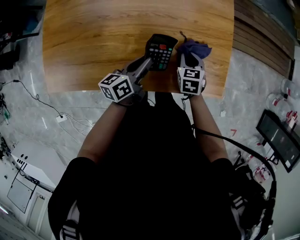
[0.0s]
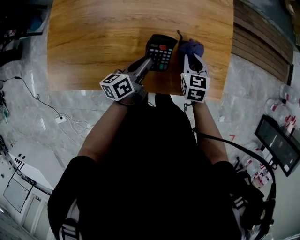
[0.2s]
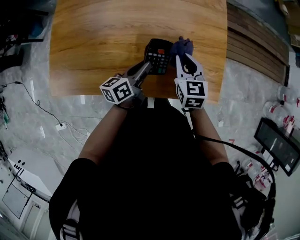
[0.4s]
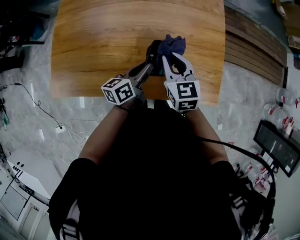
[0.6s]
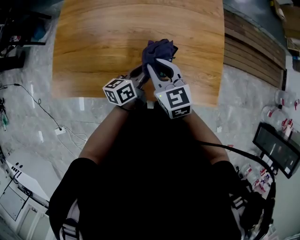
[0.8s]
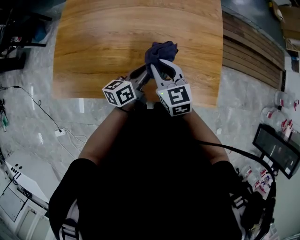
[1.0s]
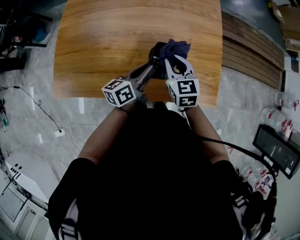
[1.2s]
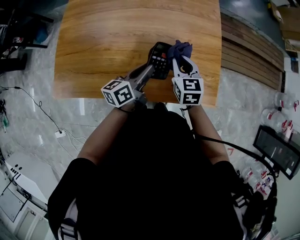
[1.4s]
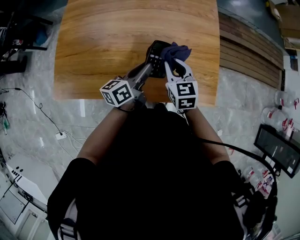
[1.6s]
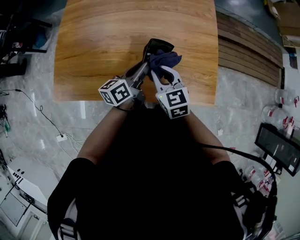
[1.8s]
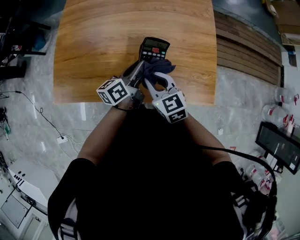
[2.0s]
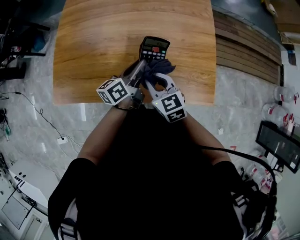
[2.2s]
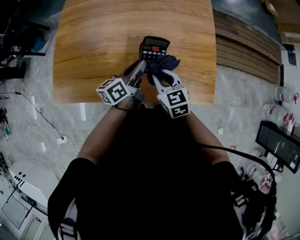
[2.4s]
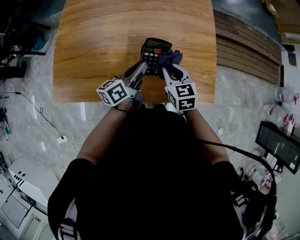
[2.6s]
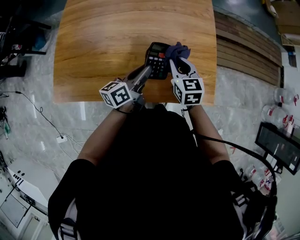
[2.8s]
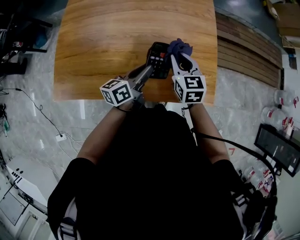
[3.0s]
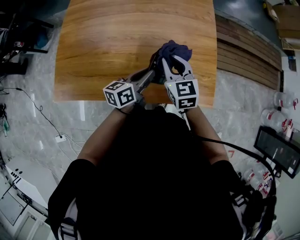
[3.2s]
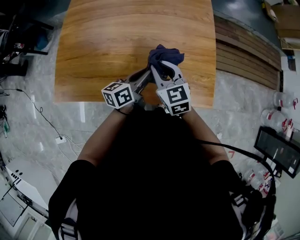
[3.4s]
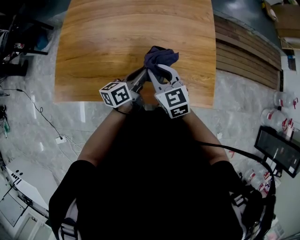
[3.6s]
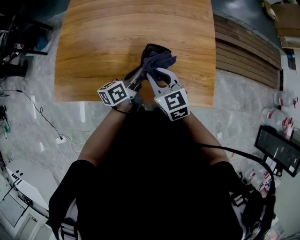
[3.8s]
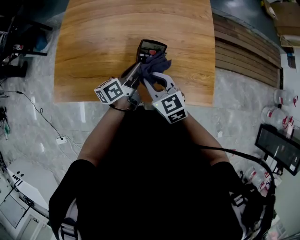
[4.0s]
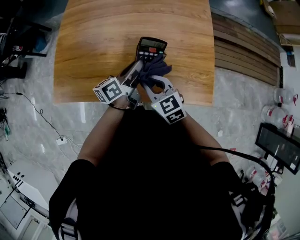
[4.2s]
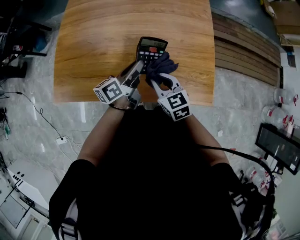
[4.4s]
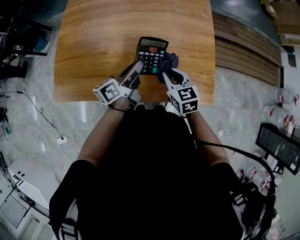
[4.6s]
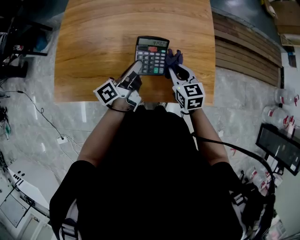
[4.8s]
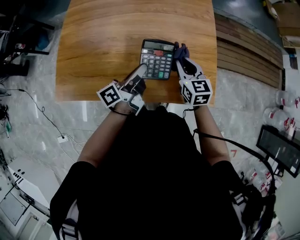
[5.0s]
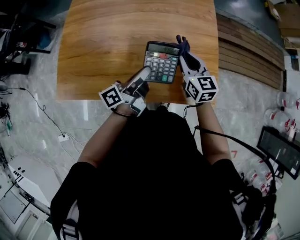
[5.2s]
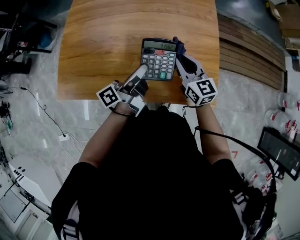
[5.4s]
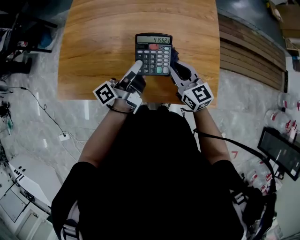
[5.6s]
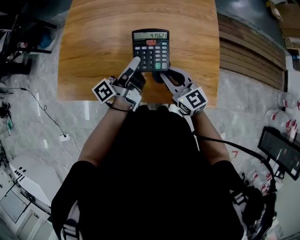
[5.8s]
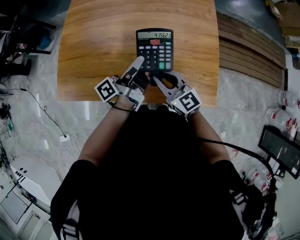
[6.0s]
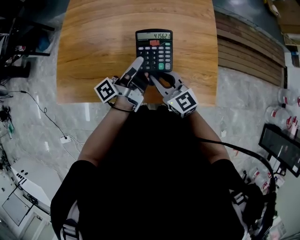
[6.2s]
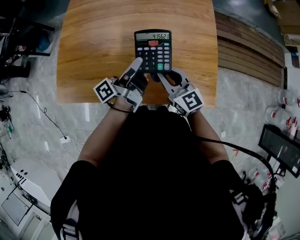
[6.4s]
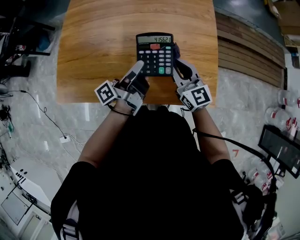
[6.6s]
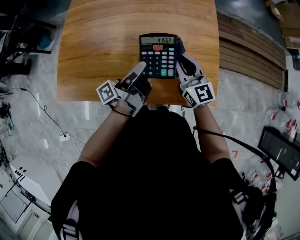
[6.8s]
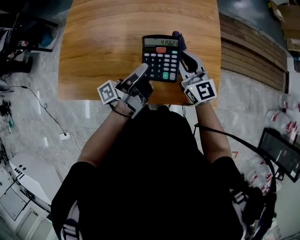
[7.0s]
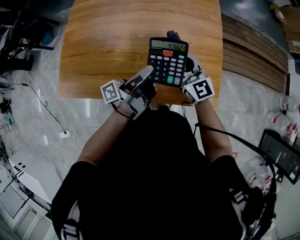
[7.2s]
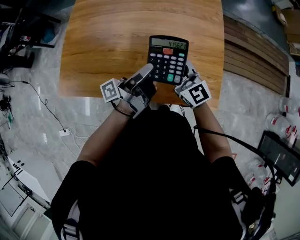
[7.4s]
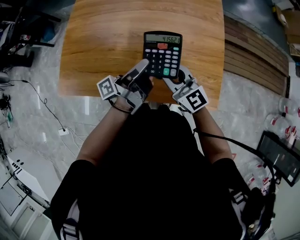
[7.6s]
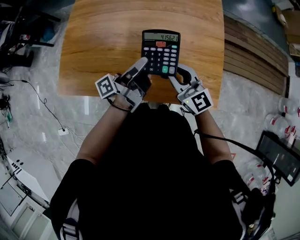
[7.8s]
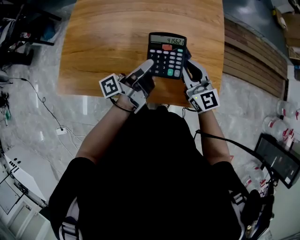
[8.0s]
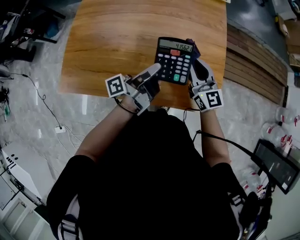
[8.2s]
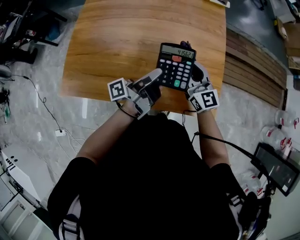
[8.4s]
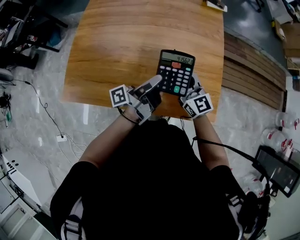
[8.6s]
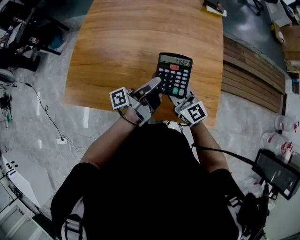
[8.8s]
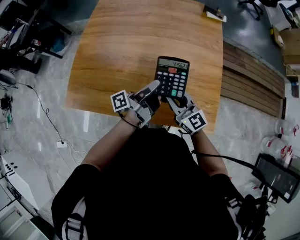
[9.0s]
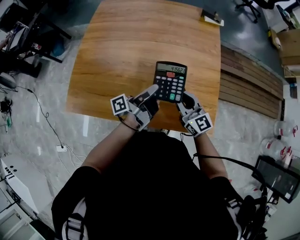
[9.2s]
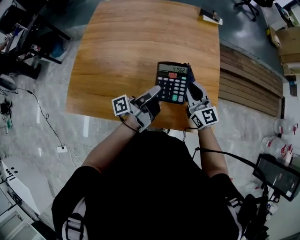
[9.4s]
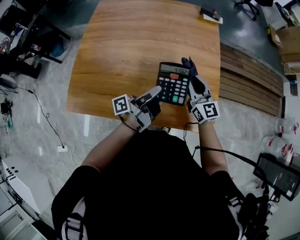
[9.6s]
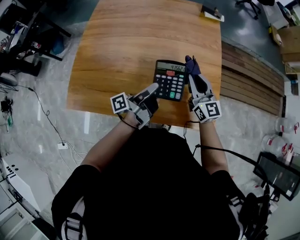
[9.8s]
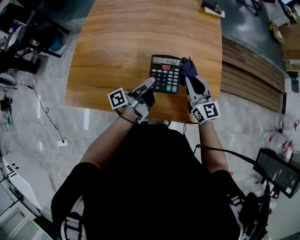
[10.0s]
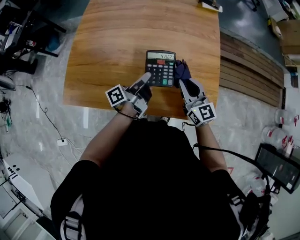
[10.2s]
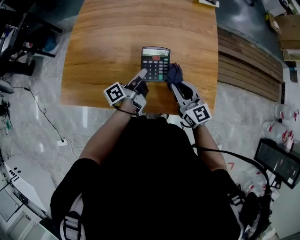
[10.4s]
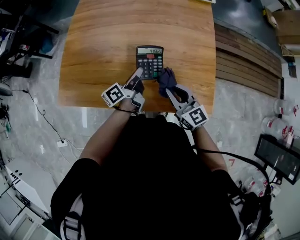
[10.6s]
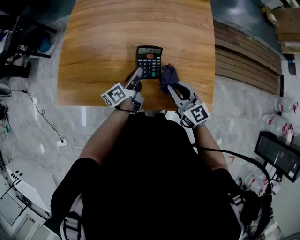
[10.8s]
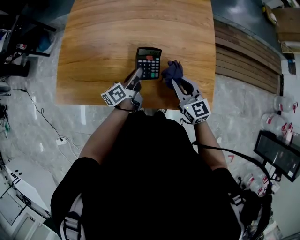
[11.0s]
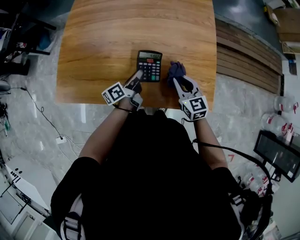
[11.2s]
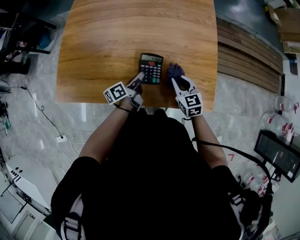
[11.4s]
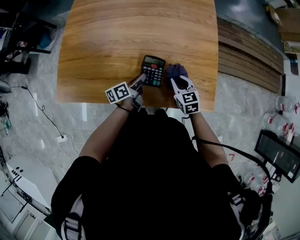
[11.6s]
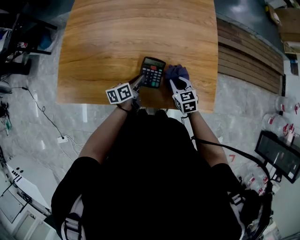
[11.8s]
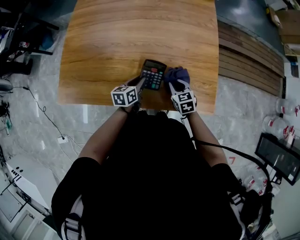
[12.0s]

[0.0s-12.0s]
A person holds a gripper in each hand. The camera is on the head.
0.0s to 1.6s: The left gripper travels upward by approximately 10 cm; the right gripper moves upward and to the left, roughly 20 cm, and rotates roughly 30 degrees.
1.6s to 3.0s: The right gripper moves some 5 cm to the left and comes back.
3.0s to 4.4s: The right gripper goes some 10 cm backward and to the left.
4.4s to 6.0s: The right gripper travels to the right and back again, roughly 10 cm each way, and rotates roughly 20 degrees; the left gripper turns by approximately 30 degrees.
6.0s to 7.6s: The right gripper goes to the right and returns, approximately 10 cm each way.
7.6s to 9.0s: The right gripper moves roughly 10 cm to the right and comes back.
9.0s to 10.4s: The left gripper moves downward, about 5 cm, and swivels about 20 degrees, while the right gripper moves to the right, approximately 5 cm.
10.4s to 12.0s: Both grippers move downward, about 15 cm. The right gripper points its fingers approximately 40 degrees further downward; the left gripper tilts its fingers approximately 40 degrees downward.

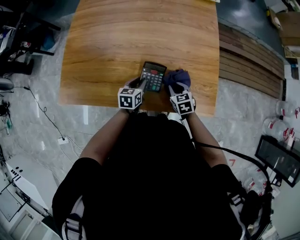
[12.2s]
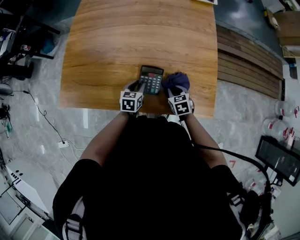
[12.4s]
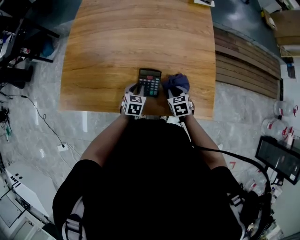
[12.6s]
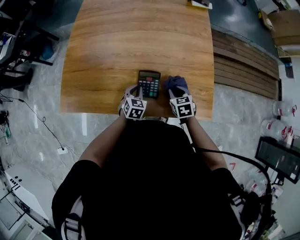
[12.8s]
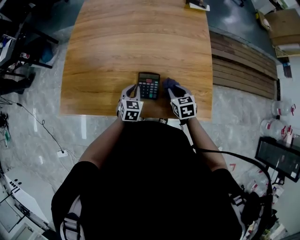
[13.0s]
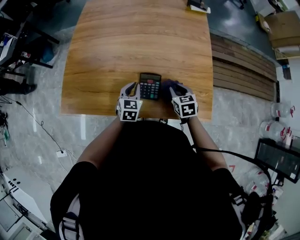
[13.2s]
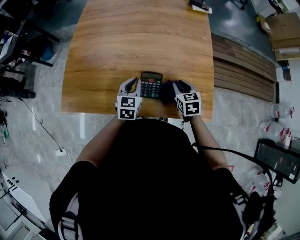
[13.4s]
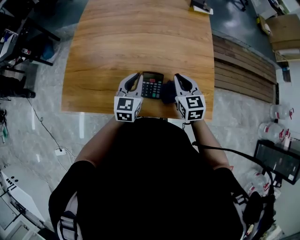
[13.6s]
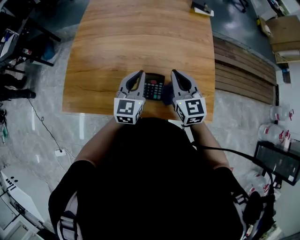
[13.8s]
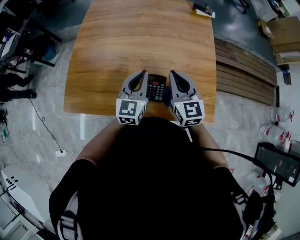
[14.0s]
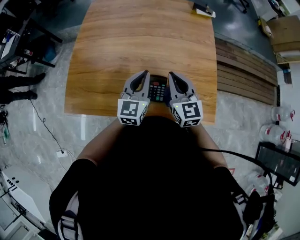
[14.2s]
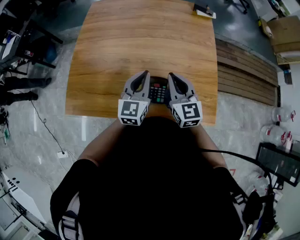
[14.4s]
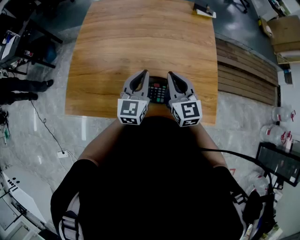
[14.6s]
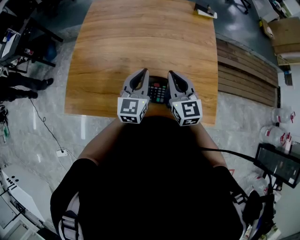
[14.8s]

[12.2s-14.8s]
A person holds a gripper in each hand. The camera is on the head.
12.2s to 13.4s: The grippers both shift upward by about 10 cm. The left gripper rotates some 20 degrees.
13.4s to 14.8s: The left gripper goes about 10 cm upward, and rotates about 20 degrees. Meanwhile the right gripper travels upward and to the left by approximately 15 cm, and tilts its fingers about 30 degrees upward.

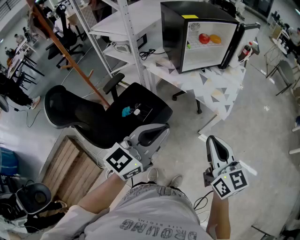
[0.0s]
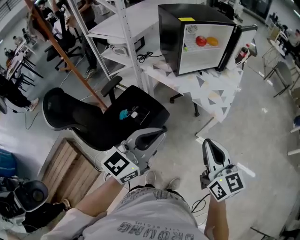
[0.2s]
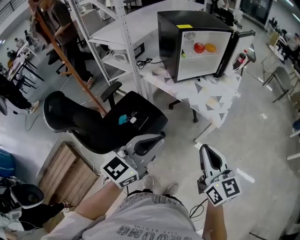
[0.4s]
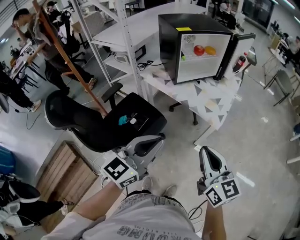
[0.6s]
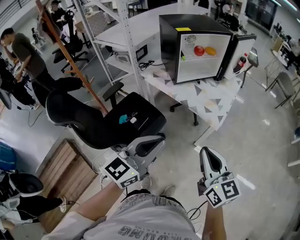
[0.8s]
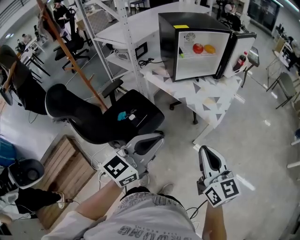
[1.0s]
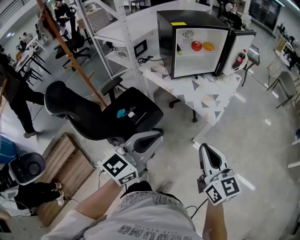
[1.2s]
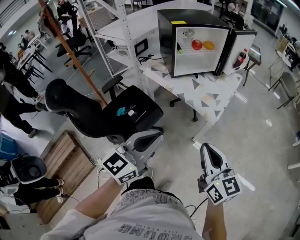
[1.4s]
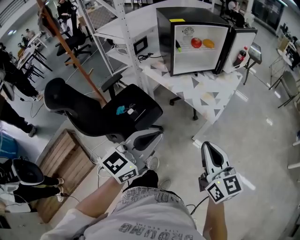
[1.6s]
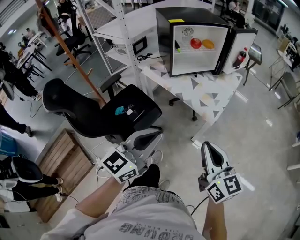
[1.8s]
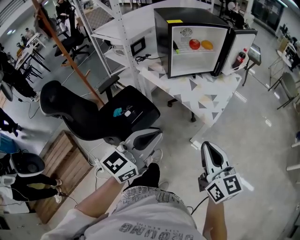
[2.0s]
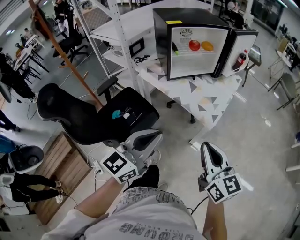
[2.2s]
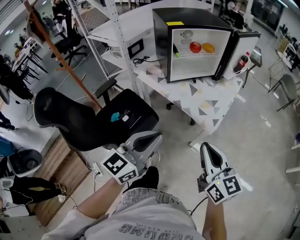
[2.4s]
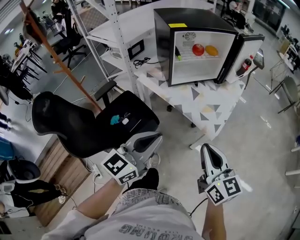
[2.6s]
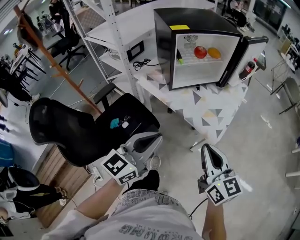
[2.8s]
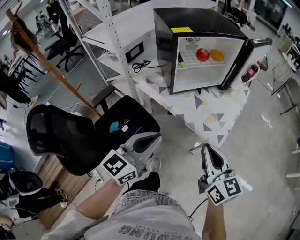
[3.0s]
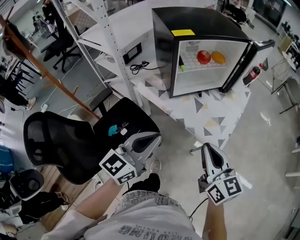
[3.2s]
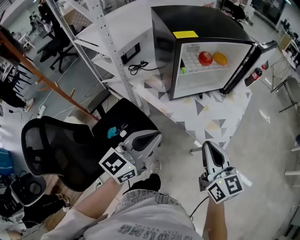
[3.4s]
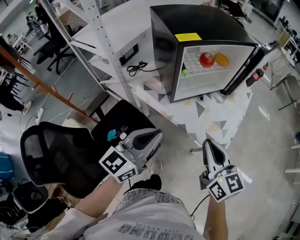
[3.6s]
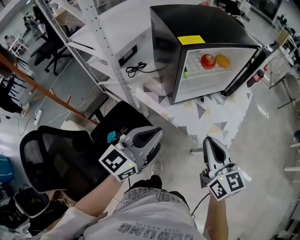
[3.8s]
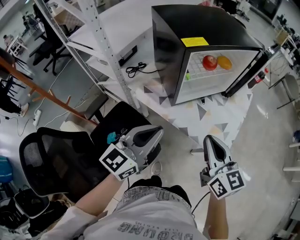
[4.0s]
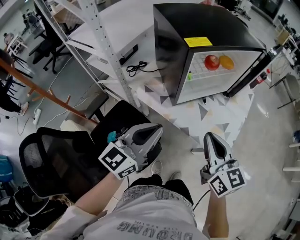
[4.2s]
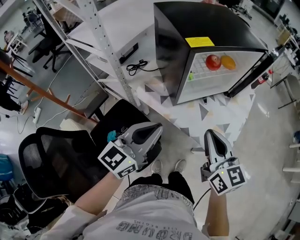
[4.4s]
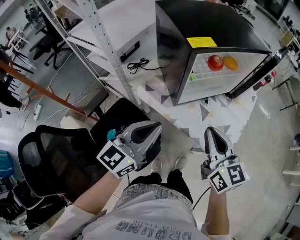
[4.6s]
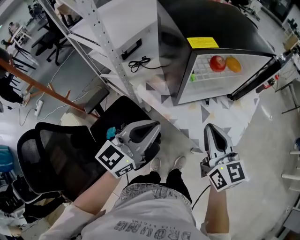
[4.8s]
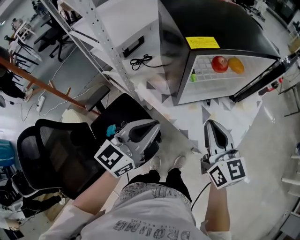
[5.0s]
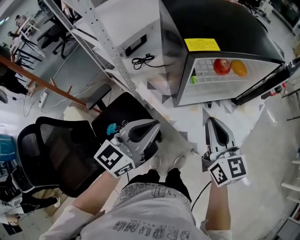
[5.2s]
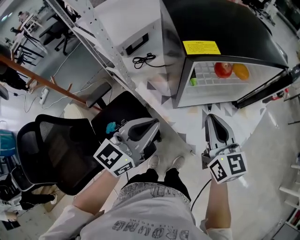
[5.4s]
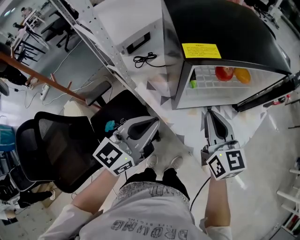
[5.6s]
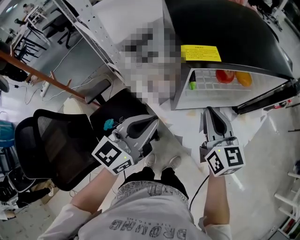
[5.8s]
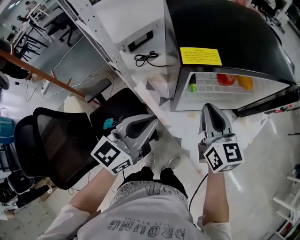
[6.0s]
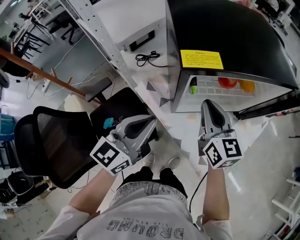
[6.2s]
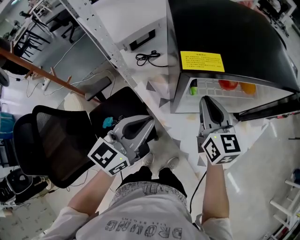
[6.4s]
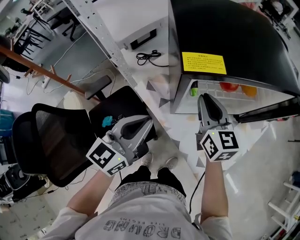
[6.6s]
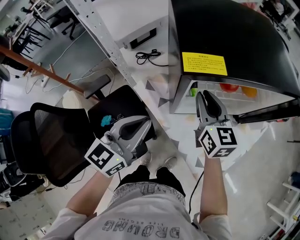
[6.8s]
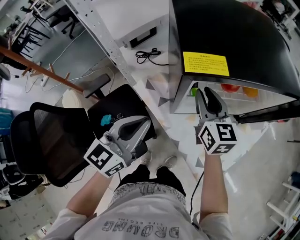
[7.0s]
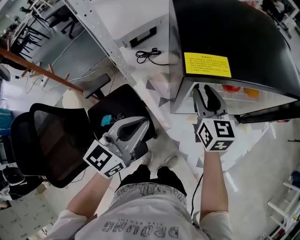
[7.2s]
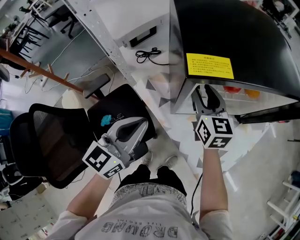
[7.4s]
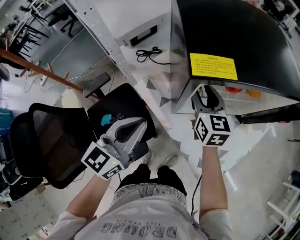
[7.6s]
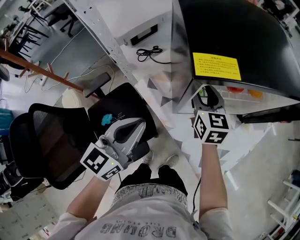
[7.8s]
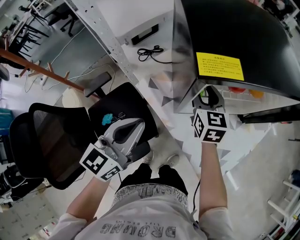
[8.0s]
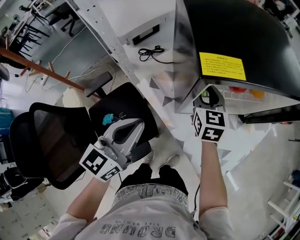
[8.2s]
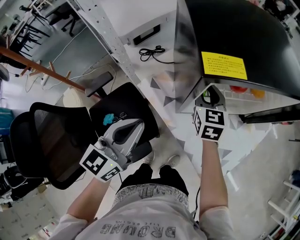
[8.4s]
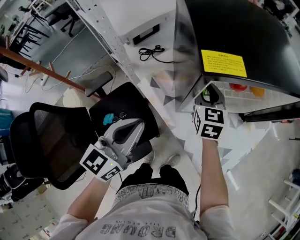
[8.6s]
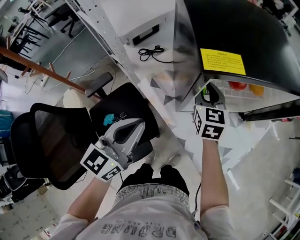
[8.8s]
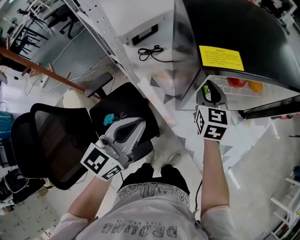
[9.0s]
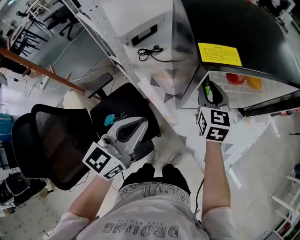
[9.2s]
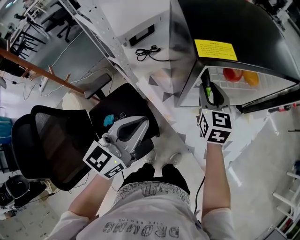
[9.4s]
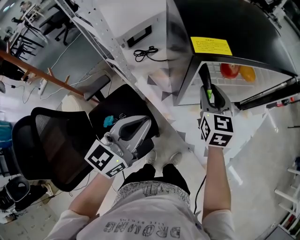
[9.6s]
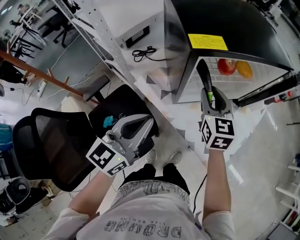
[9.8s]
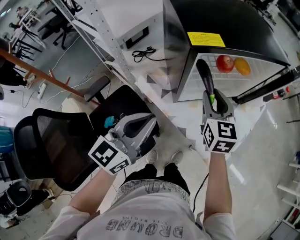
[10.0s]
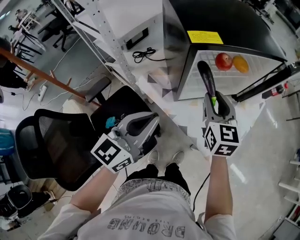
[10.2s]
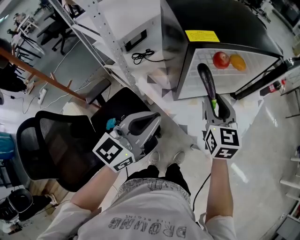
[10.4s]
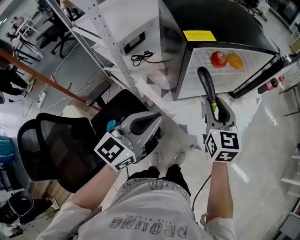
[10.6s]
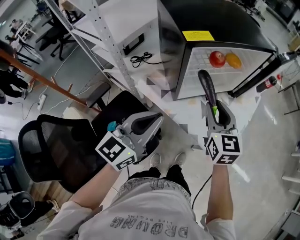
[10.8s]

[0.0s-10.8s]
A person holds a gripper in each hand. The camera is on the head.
0.0s to 1.6s: Both grippers travel together to the right, approximately 10 cm.
1.6s to 3.0s: Both grippers travel together forward, roughly 20 cm.
3.0s to 4.6s: The grippers both shift forward and to the left by roughly 20 cm.
4.6s to 6.2s: The right gripper is displaced forward by roughly 20 cm; the left gripper is displaced forward by some 10 cm.
6.2s to 7.8s: The right gripper goes approximately 10 cm forward and downward, and opens its fingers.
7.8s to 9.2s: The grippers stay close to where they were, moving slightly.
9.2s to 10.8s: The right gripper travels backward, to the right and upward by about 20 cm. Meanwhile the left gripper travels backward by roughly 5 cm.
